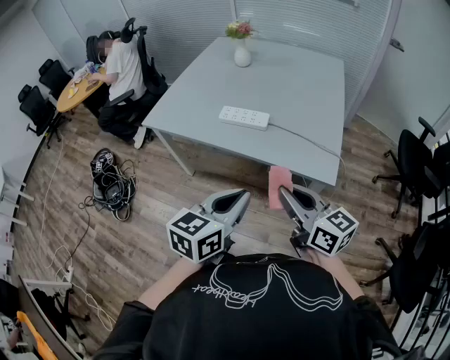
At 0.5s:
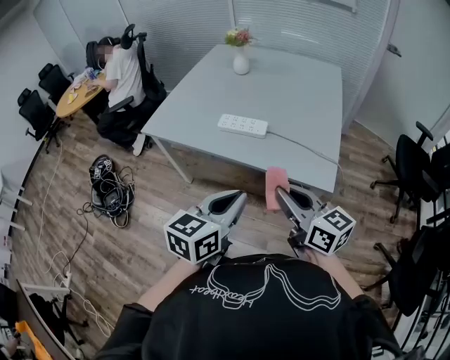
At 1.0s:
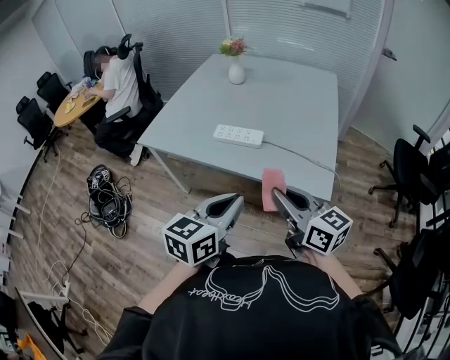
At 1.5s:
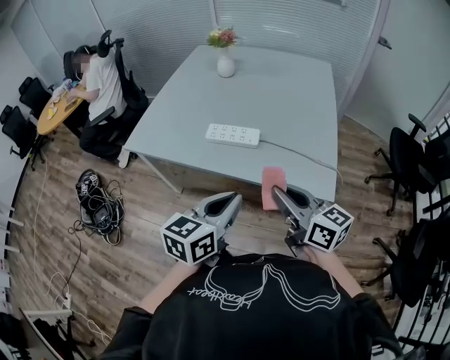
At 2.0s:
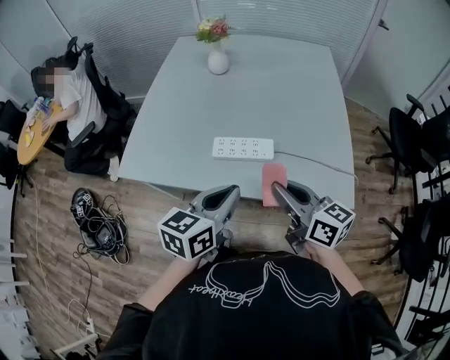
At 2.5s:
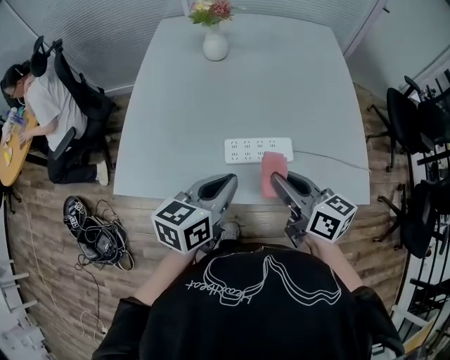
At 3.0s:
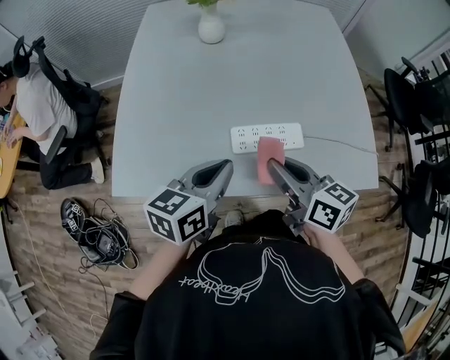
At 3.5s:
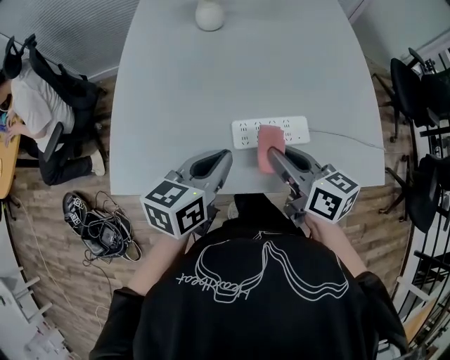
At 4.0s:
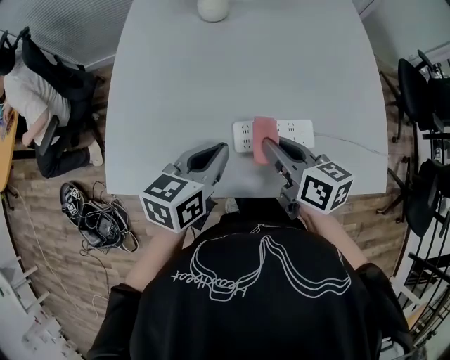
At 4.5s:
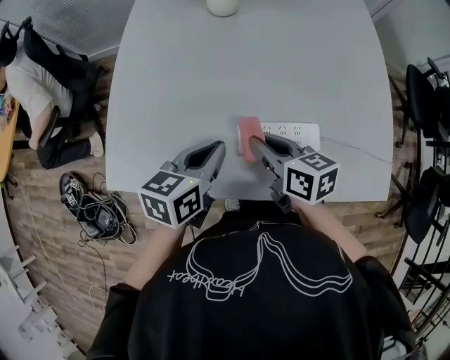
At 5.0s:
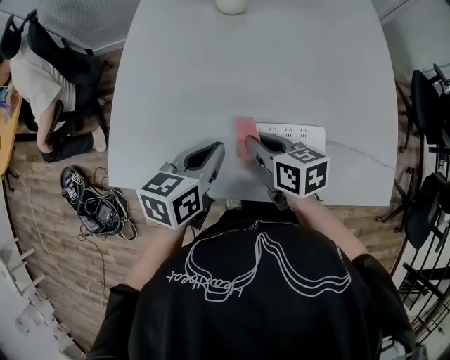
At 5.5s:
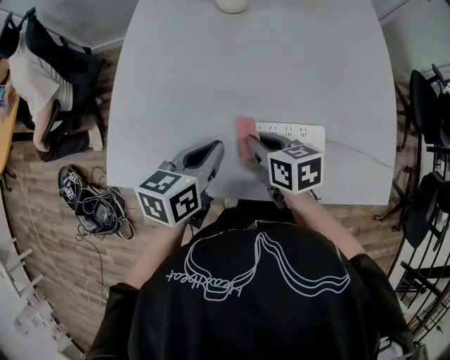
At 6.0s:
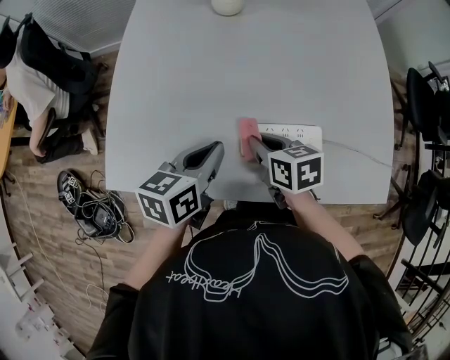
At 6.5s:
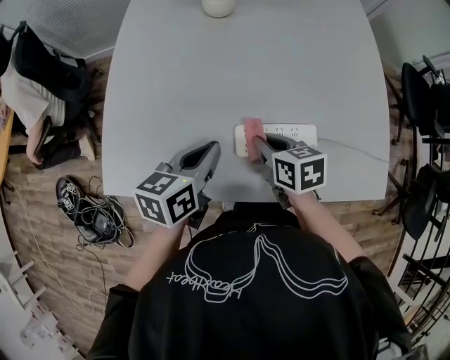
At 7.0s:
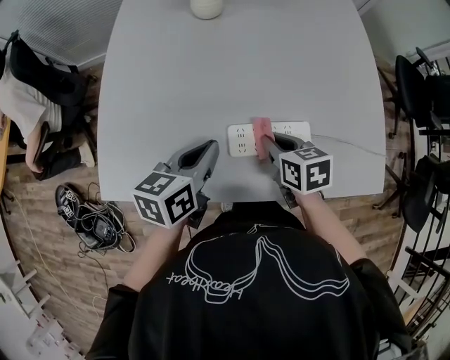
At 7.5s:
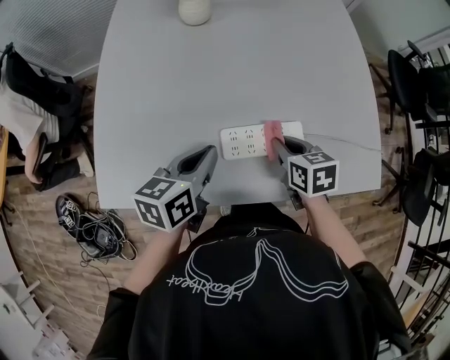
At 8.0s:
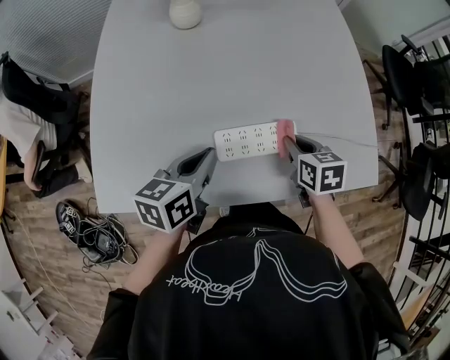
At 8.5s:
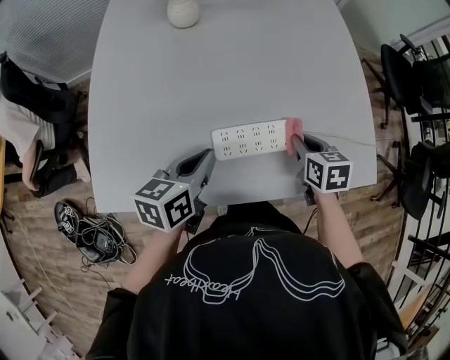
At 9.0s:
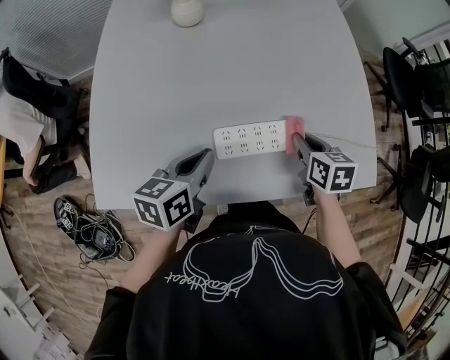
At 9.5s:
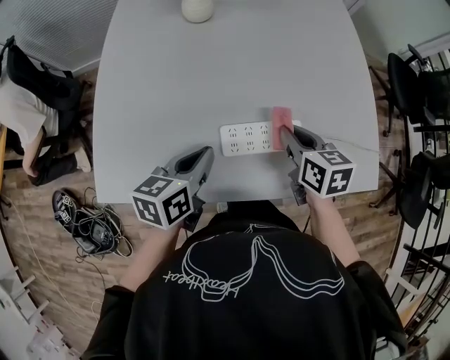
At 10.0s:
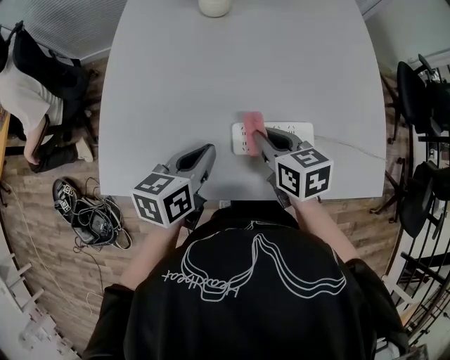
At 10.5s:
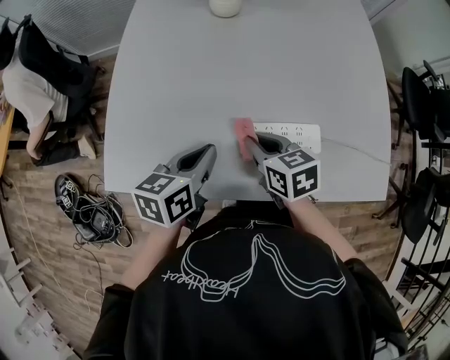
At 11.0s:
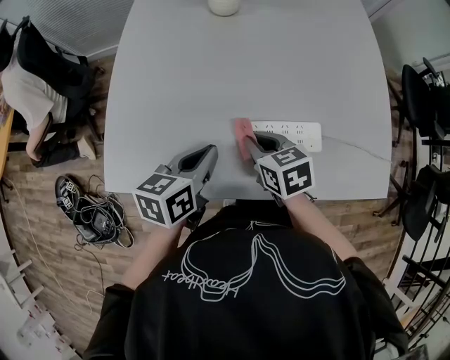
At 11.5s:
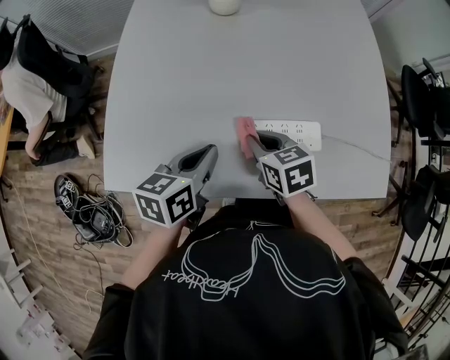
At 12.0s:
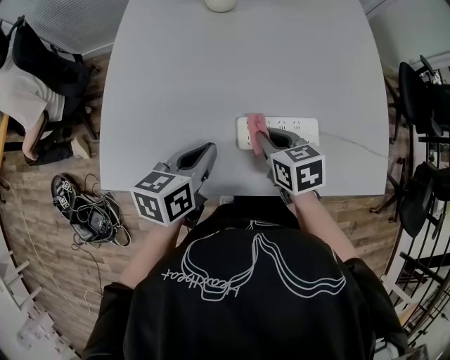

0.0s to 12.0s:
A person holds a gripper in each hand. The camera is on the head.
0.0s to 2.0s: The grippers both shift forward and to the left by about 25 cm.
2.0s to 4.0s: The grippers both shift forward, to the left and downward by about 25 cm. The right gripper swivels some 20 degrees.
4.0s to 6.0s: The right gripper travels downward by approximately 10 cm, and turns by some 20 degrees.
6.0s to 8.0s: The right gripper moves to the right, about 15 cm, and rotates about 20 degrees.
8.0s to 10.0s: The right gripper moves to the left, about 15 cm.
10.0s to 12.0s: The grippers stay close to where they were, moving slightly.

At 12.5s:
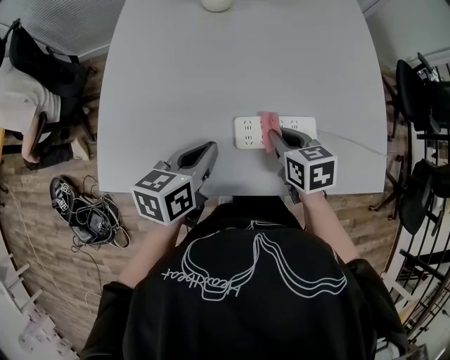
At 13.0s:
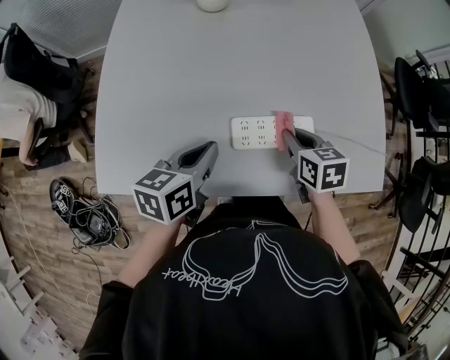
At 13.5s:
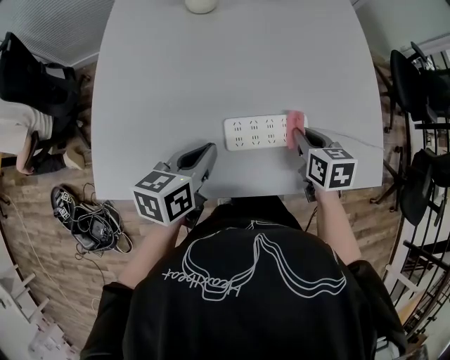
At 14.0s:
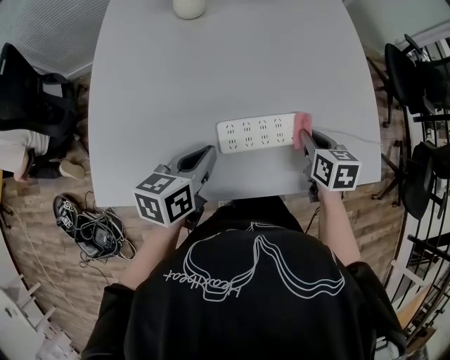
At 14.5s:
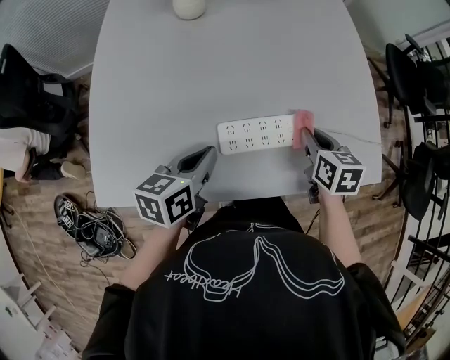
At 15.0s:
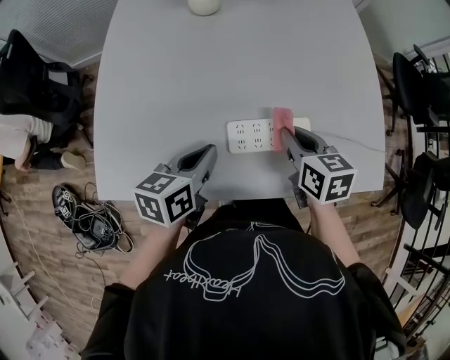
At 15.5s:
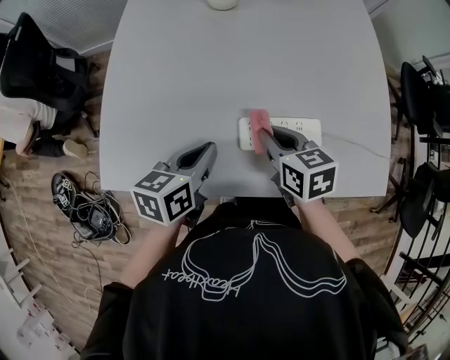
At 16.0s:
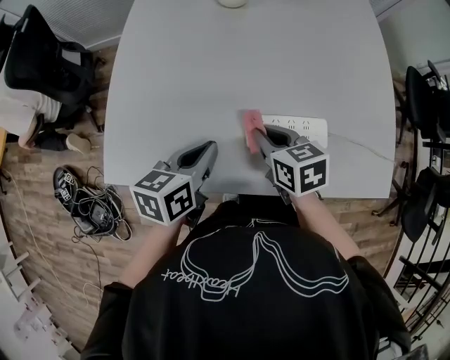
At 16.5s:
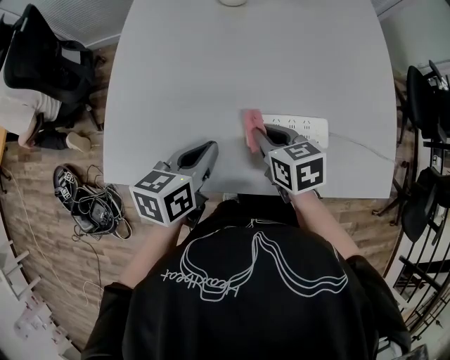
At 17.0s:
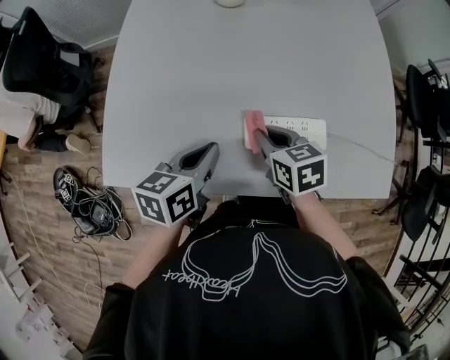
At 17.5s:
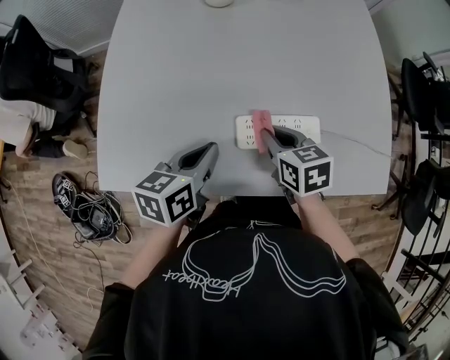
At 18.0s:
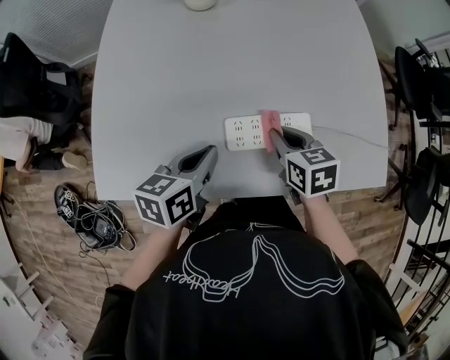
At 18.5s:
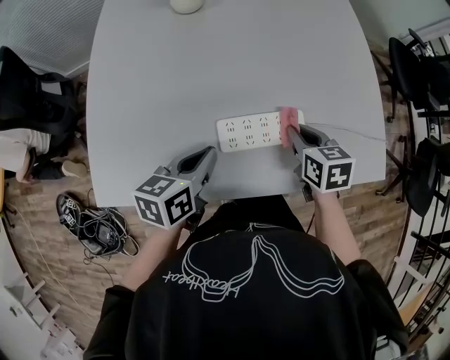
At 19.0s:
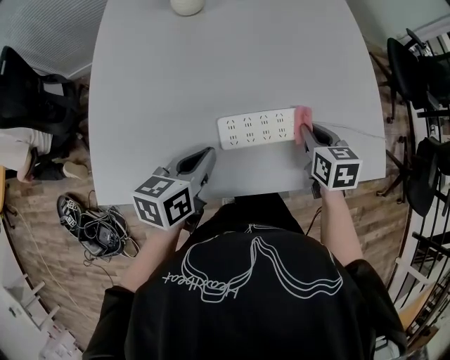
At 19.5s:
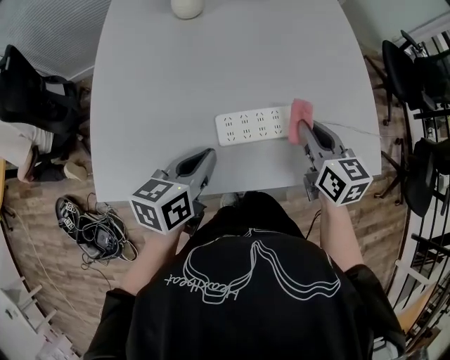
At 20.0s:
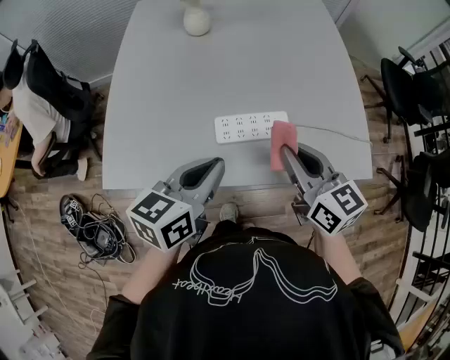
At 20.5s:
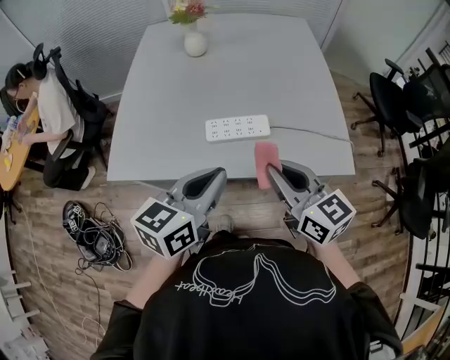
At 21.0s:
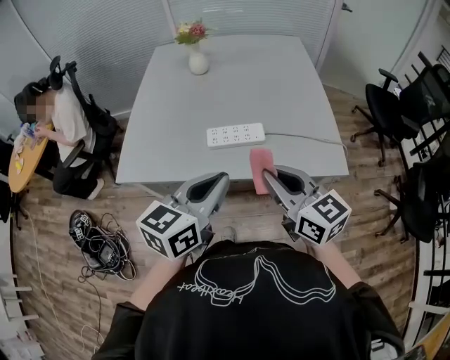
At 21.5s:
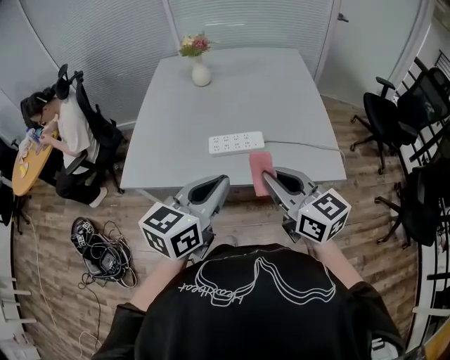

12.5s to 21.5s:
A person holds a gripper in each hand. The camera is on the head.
12.5s to 14.5s: The right gripper travels to the right by roughly 15 cm.
14.5s to 17.0s: The left gripper shifts approximately 5 cm to the left, while the right gripper is displaced to the left by approximately 20 cm, and swivels about 30 degrees.
17.0s to 19.5s: The left gripper moves to the right, roughly 5 cm, while the right gripper moves to the right and upward, about 20 cm, and swivels roughly 30 degrees.
19.5s to 21.5s: The left gripper travels backward, upward and to the right by roughly 35 cm, and rotates about 30 degrees. Meanwhile the right gripper moves backward and upward, roughly 35 cm, and turns by about 30 degrees.

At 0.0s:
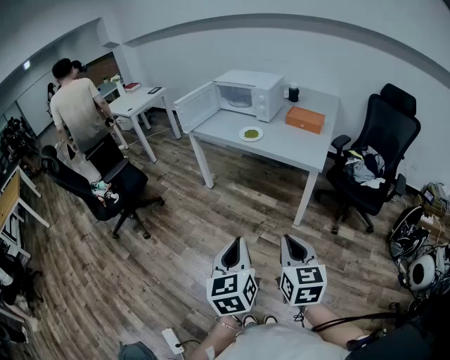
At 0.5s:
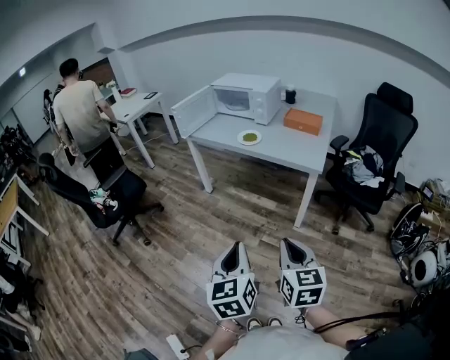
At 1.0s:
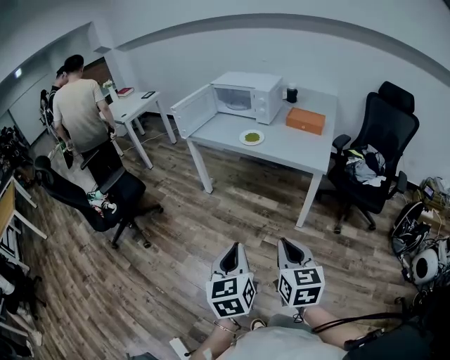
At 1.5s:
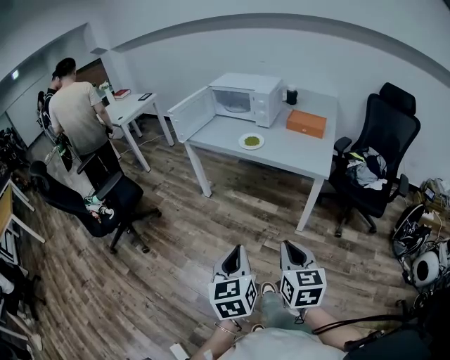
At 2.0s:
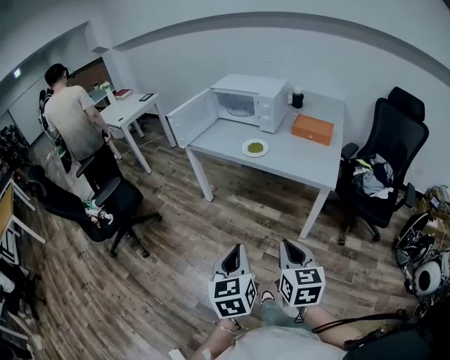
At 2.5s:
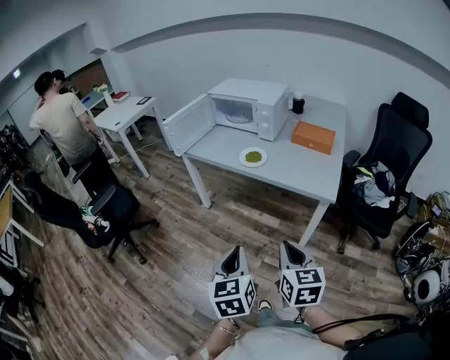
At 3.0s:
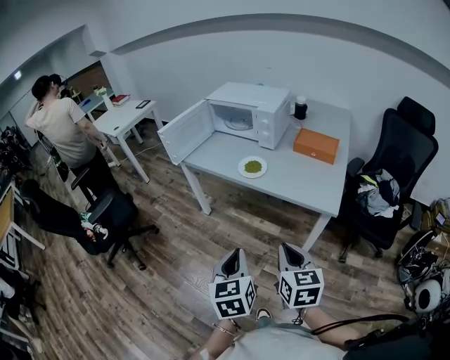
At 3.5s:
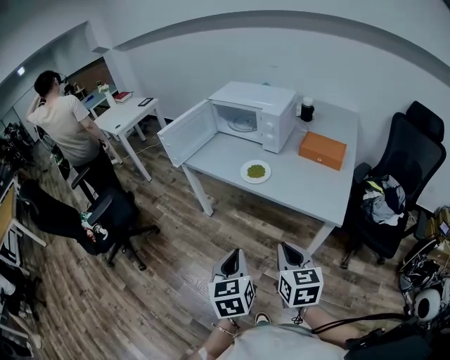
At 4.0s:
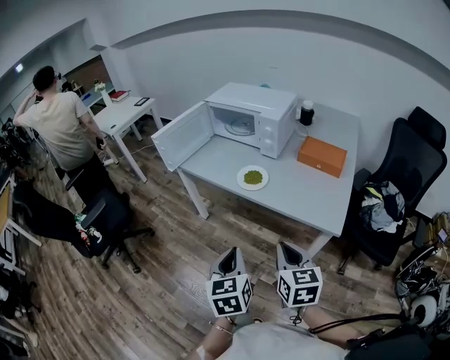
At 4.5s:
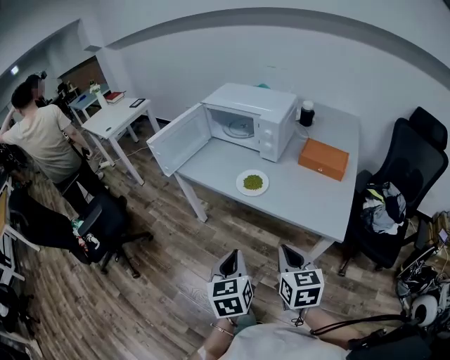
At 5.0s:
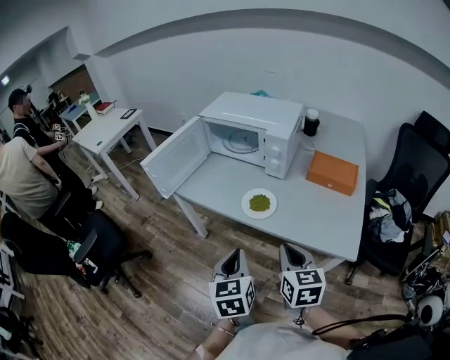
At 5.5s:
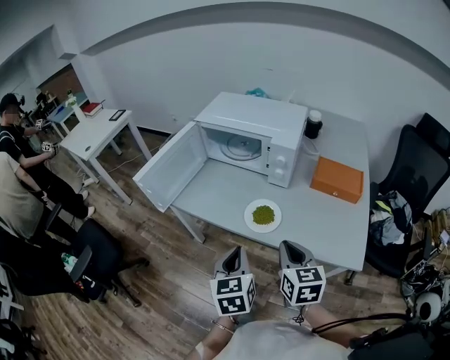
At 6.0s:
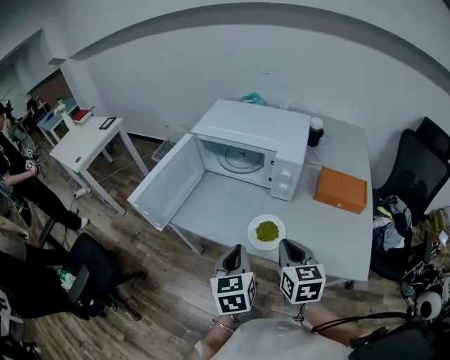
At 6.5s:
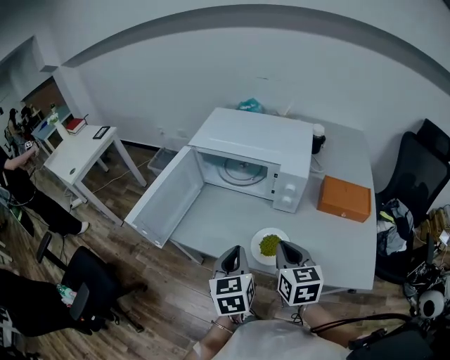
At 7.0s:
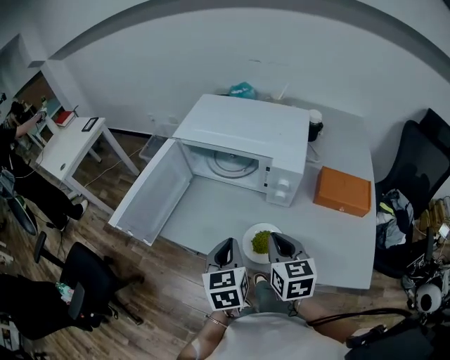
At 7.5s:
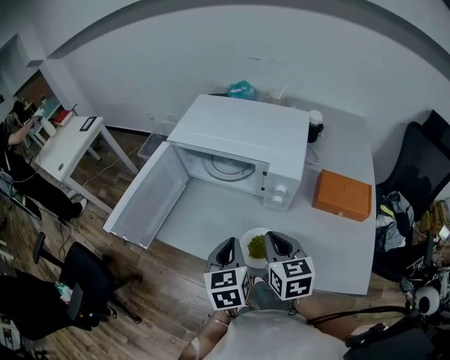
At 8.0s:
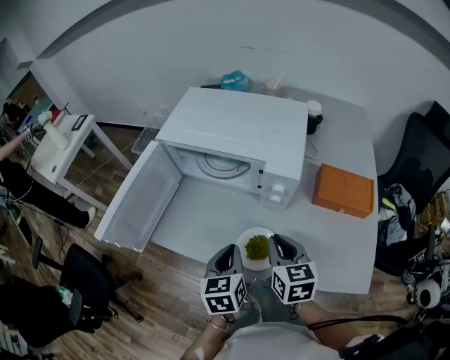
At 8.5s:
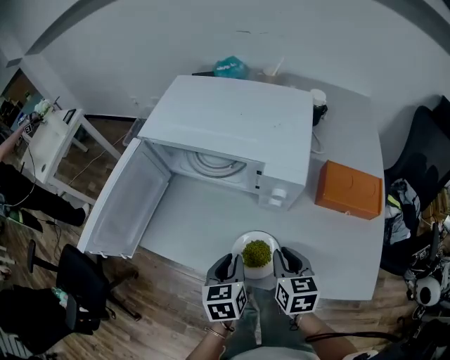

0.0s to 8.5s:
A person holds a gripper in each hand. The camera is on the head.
0.0s to 2.0s: Both grippers travel together forward, about 15 cm.
2.0s to 4.0s: Both grippers move forward, some 20 cm.
4.0s to 6.5s: The two grippers go roughly 35 cm forward.
6.5s to 8.5s: The left gripper is displaced downward, forward and to the right by roughly 15 cm, while the right gripper moves downward, to the right and forward, approximately 15 cm.
